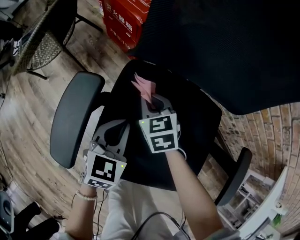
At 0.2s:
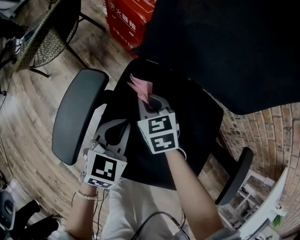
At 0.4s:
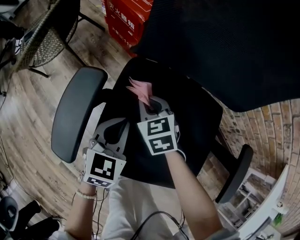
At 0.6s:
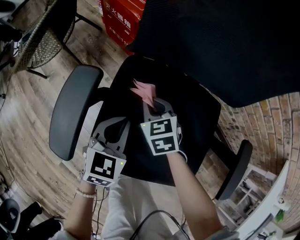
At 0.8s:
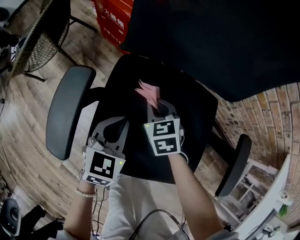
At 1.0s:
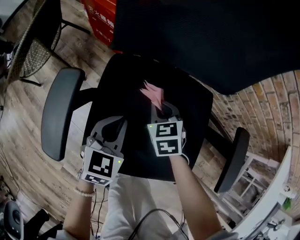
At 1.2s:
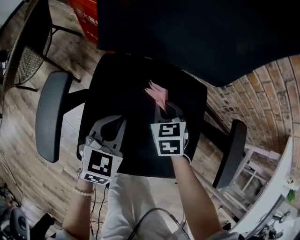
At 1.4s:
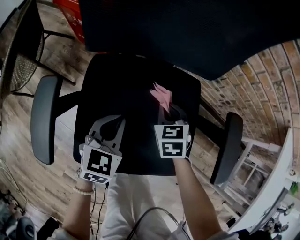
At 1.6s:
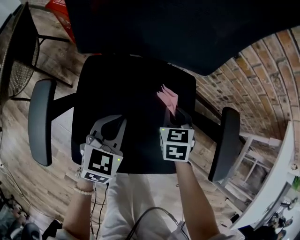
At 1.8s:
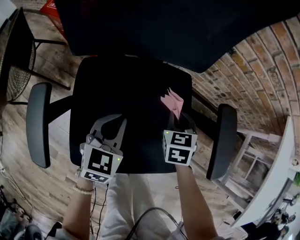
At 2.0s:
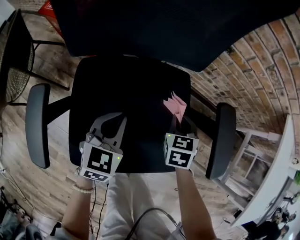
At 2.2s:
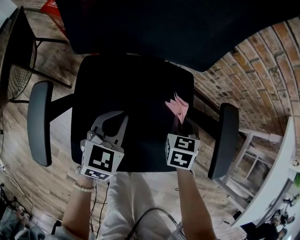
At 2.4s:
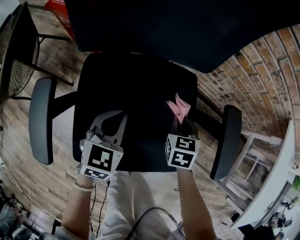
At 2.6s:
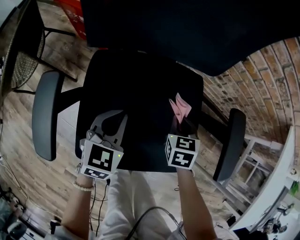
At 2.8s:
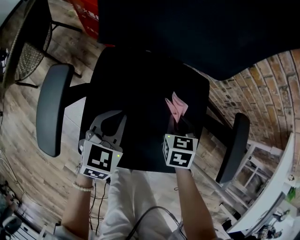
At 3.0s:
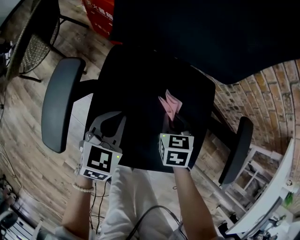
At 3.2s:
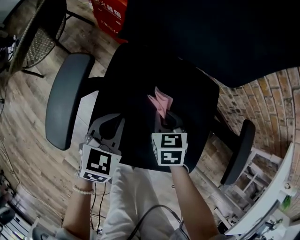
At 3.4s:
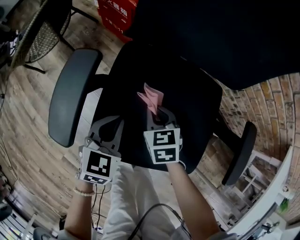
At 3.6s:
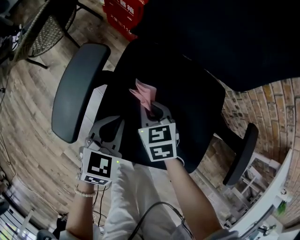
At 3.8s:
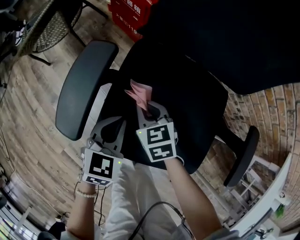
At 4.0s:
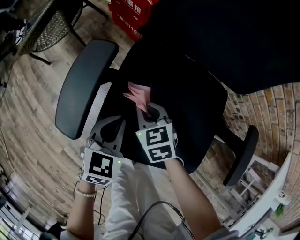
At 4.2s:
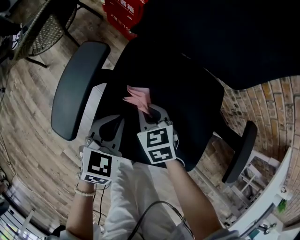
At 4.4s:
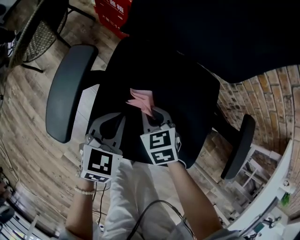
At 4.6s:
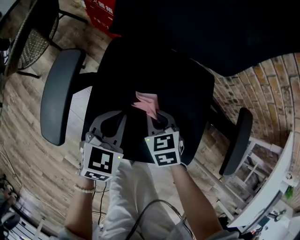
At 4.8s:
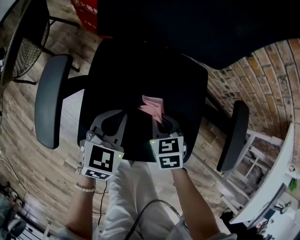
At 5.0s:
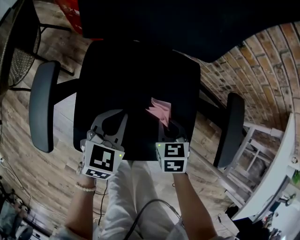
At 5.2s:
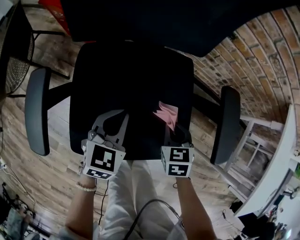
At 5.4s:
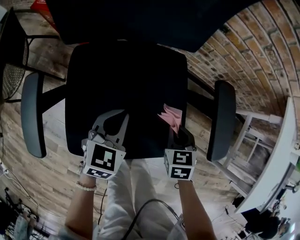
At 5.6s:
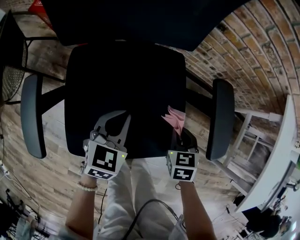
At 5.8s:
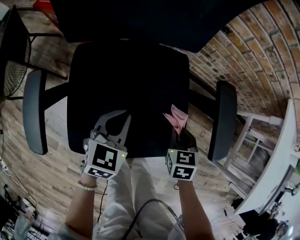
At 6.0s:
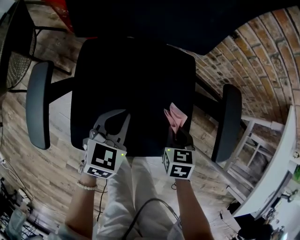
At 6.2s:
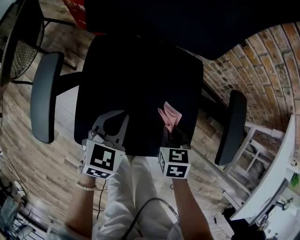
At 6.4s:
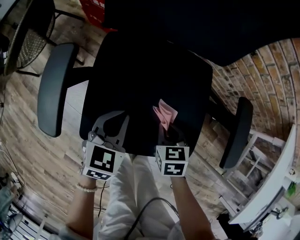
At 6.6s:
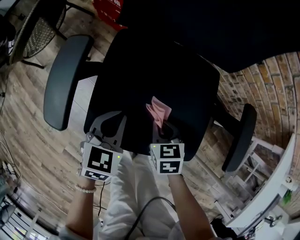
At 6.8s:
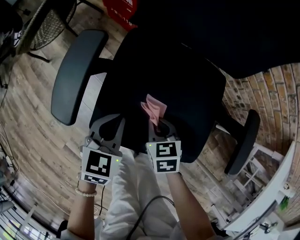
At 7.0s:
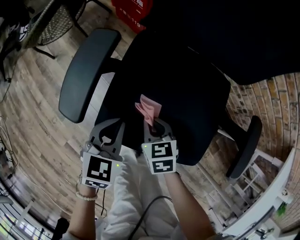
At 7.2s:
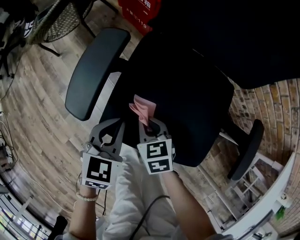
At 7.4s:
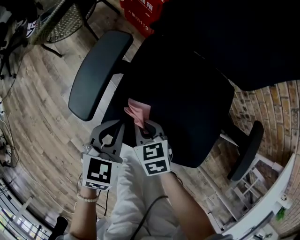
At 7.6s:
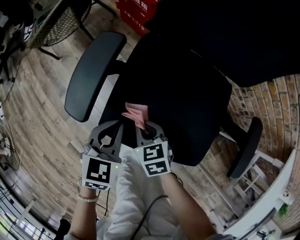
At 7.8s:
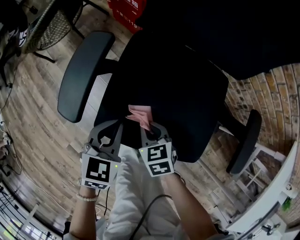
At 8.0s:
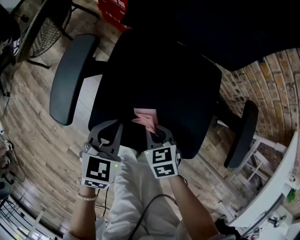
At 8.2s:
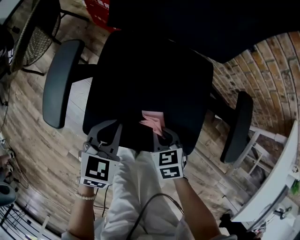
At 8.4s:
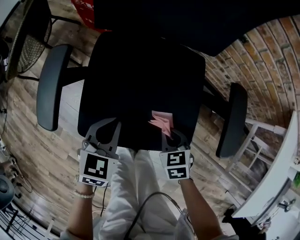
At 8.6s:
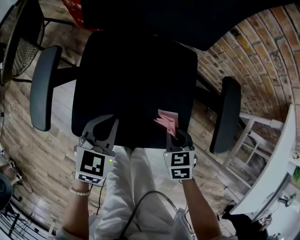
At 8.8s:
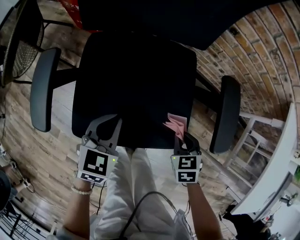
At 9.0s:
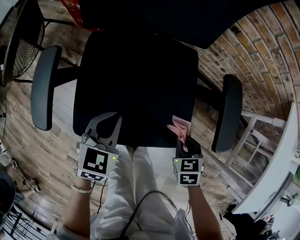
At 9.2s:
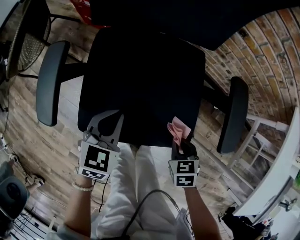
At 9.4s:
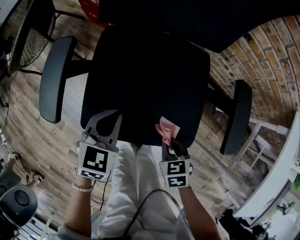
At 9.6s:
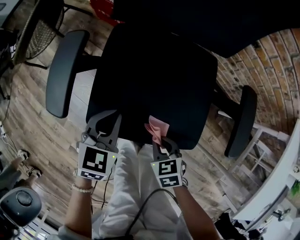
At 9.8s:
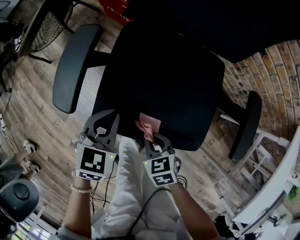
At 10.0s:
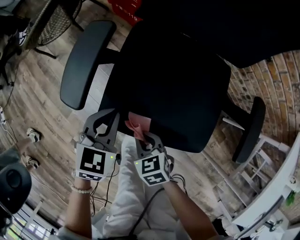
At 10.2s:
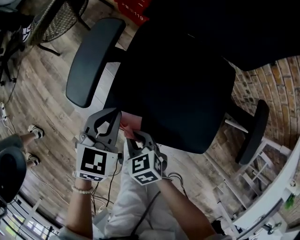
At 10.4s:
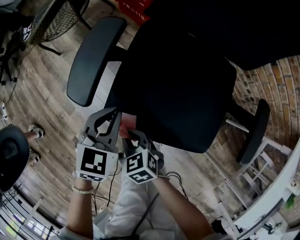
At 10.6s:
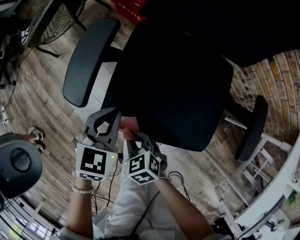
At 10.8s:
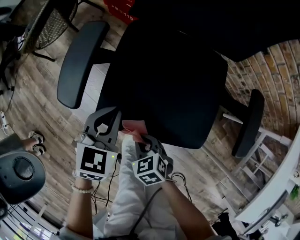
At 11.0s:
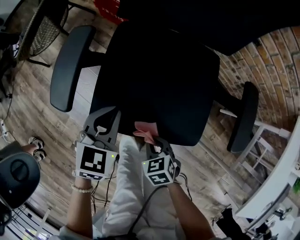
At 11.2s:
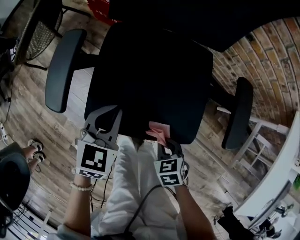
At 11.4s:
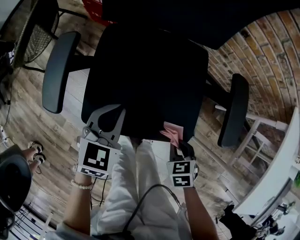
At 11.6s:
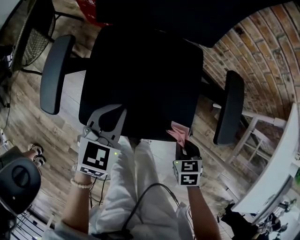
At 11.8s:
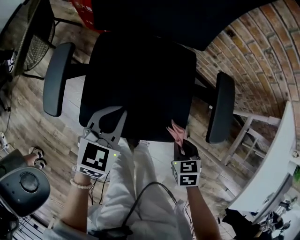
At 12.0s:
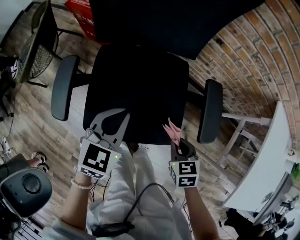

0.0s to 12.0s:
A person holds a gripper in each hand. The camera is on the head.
0.0s to 1.6s: The right gripper ends up roughly 25 cm from where it was, and swivels approximately 30 degrees. Meanwhile the left gripper ends up approximately 10 cm from where it was.
1.6s to 3.0s: The right gripper is displaced to the left and backward by about 10 cm. The left gripper is displaced to the left by about 5 cm.
3.0s to 4.4s: The right gripper is displaced to the left by approximately 10 cm, and turns by approximately 20 degrees.
4.4s to 6.0s: The left gripper changes place by roughly 10 cm; the right gripper changes place by some 25 cm, and swivels about 40 degrees.
6.0s to 7.6s: The left gripper ends up approximately 20 cm from where it was, and swivels roughly 20 degrees, while the right gripper moves some 30 cm, and rotates some 40 degrees.
7.6s to 9.0s: The left gripper shifts by approximately 15 cm; the right gripper changes place by roughly 30 cm, and turns by about 30 degrees.
9.0s to 10.4s: The left gripper shifts by some 15 cm; the right gripper changes place by about 35 cm, and changes its angle by roughly 40 degrees.
10.4s to 12.0s: The left gripper changes place by roughly 20 cm, and turns by about 20 degrees; the right gripper changes place by about 35 cm, and turns by approximately 40 degrees.

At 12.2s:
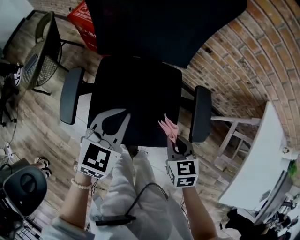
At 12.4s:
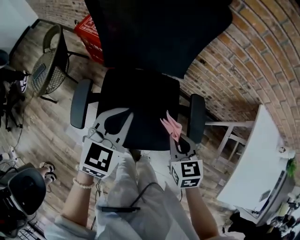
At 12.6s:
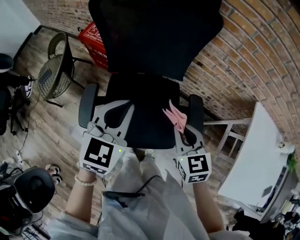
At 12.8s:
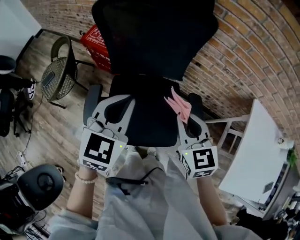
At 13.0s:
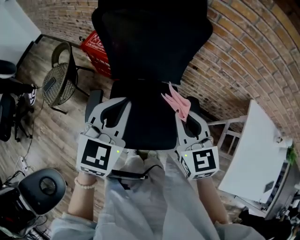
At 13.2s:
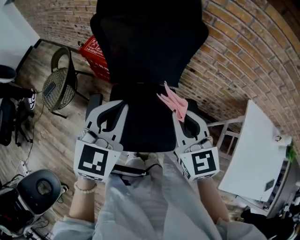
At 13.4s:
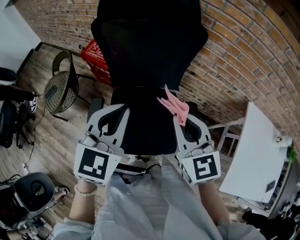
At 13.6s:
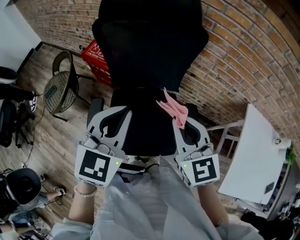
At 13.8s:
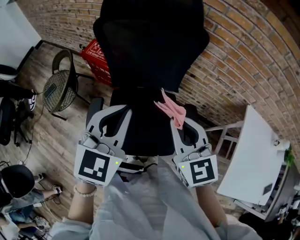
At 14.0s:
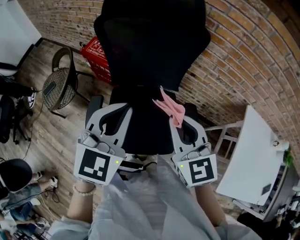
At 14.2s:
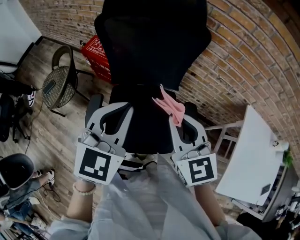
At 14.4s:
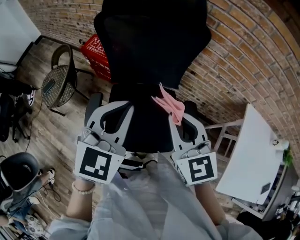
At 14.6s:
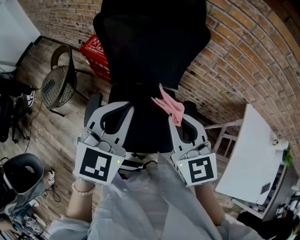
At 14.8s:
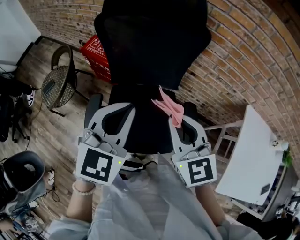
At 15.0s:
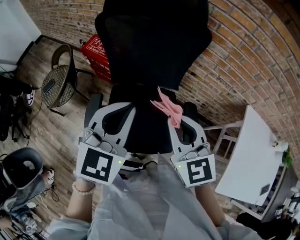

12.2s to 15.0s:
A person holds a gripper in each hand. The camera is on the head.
12.2s to 13.6s: The grippers both shift upward by some 30 cm. The right gripper tips its fingers upward by some 30 degrees.
13.6s to 15.0s: The grippers make only small movements.

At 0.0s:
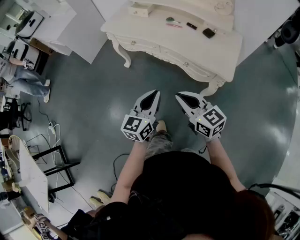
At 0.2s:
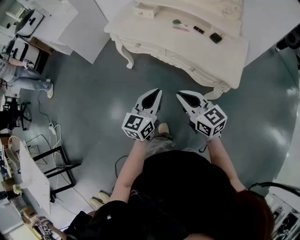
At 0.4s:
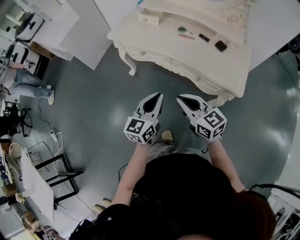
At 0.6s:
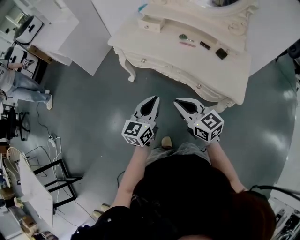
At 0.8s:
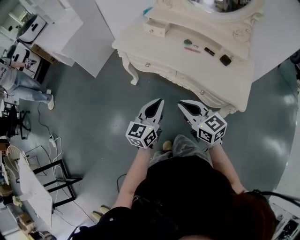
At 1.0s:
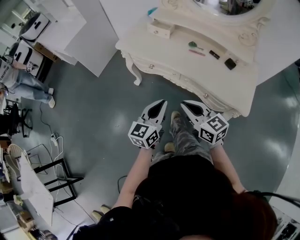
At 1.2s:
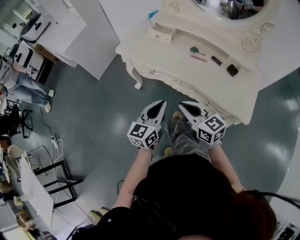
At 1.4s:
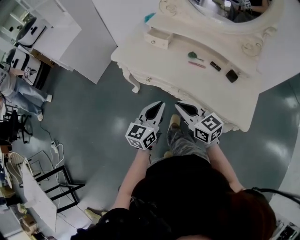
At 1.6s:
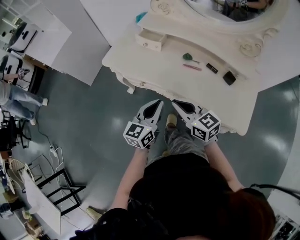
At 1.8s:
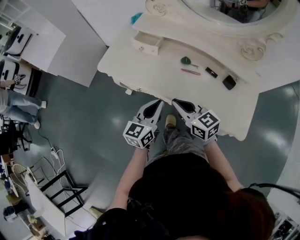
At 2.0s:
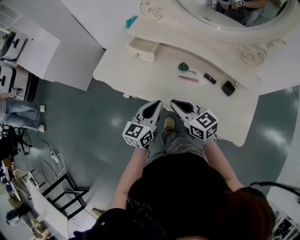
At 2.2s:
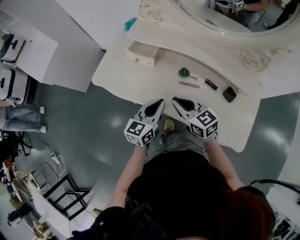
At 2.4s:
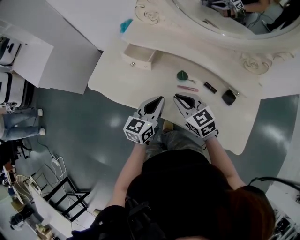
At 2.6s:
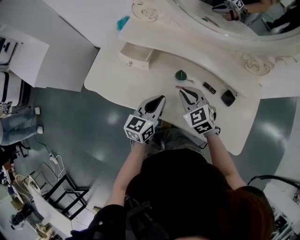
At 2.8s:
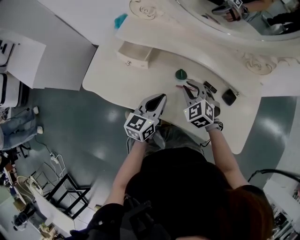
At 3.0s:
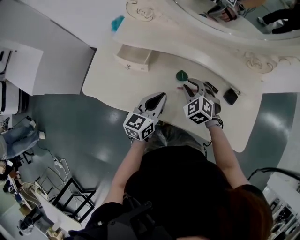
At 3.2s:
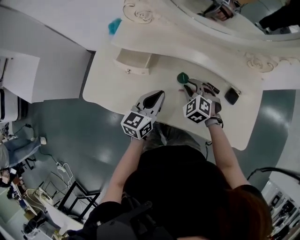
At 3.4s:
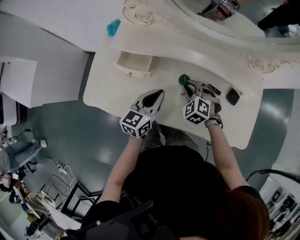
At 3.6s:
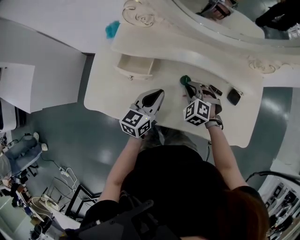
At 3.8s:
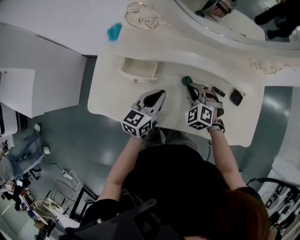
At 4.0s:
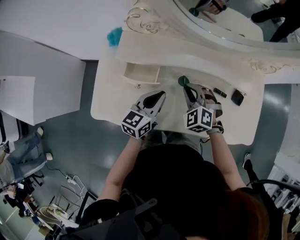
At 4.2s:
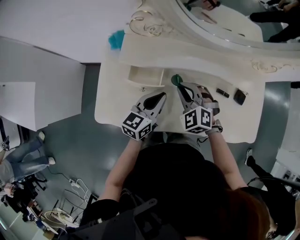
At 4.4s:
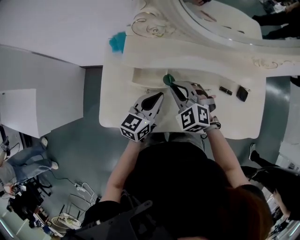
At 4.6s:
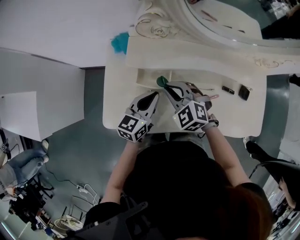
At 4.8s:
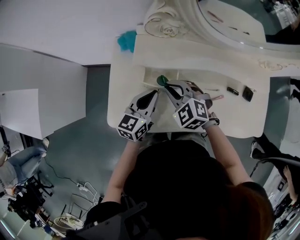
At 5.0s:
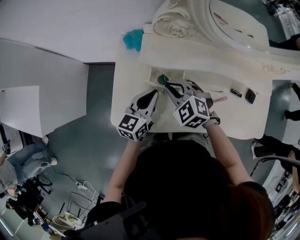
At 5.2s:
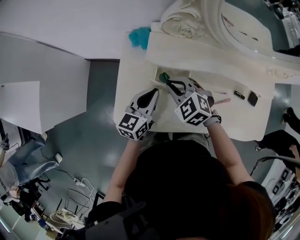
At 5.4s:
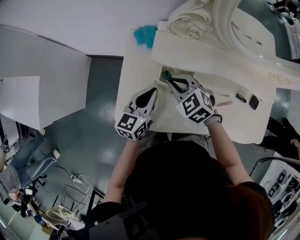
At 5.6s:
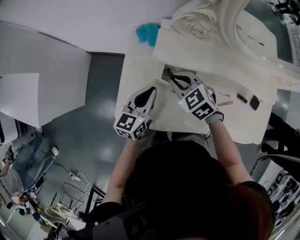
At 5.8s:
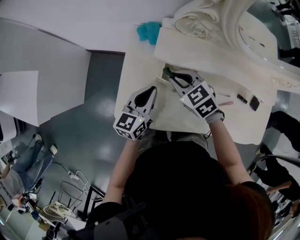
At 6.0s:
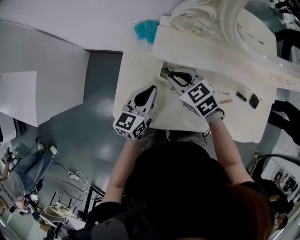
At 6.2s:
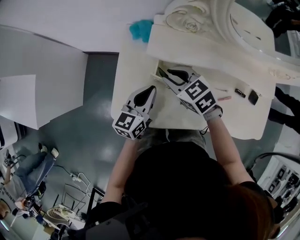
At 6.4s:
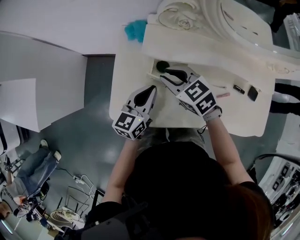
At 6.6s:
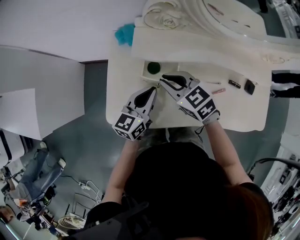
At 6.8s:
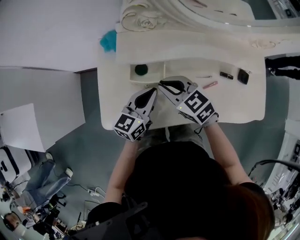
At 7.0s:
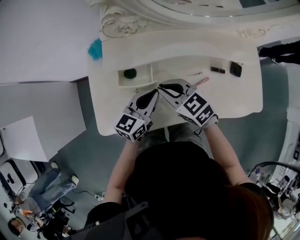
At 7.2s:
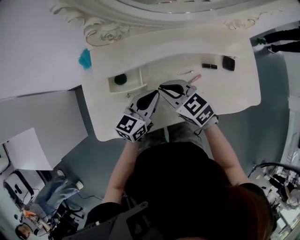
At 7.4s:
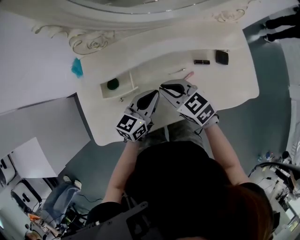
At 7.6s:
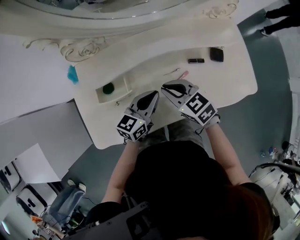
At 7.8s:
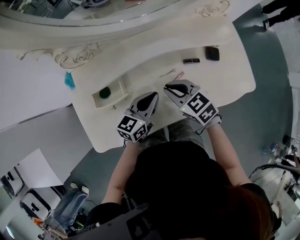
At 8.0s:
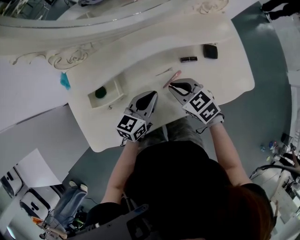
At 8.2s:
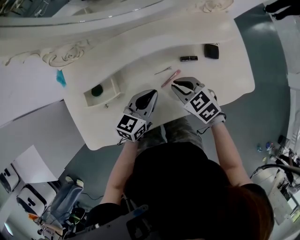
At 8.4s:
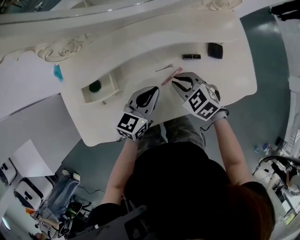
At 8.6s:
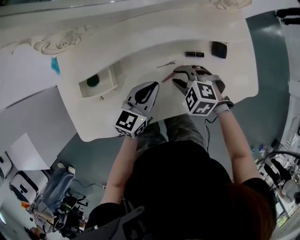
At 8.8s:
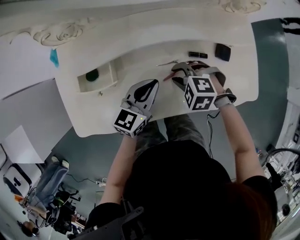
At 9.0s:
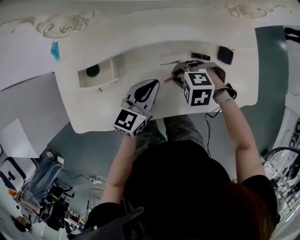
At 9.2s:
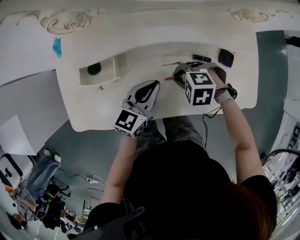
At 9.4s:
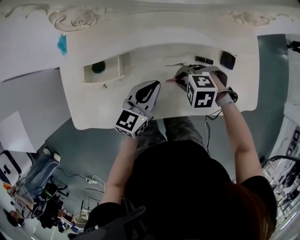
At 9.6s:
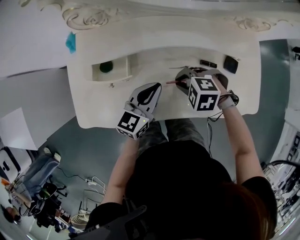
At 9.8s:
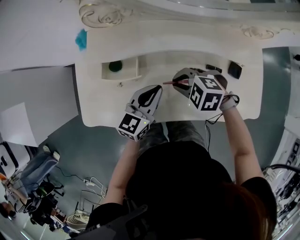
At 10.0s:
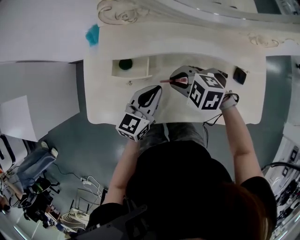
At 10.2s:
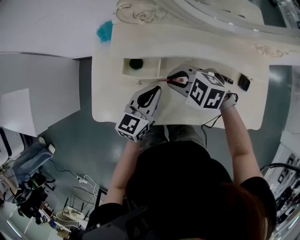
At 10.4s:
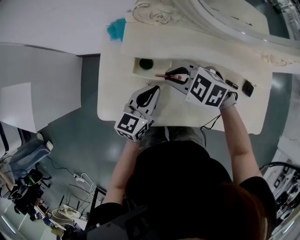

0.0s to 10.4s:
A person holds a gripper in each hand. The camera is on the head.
0.0s to 1.4s: The two grippers go roughly 25 cm forward.
1.4s to 3.0s: The left gripper changes place by about 25 cm; the right gripper changes place by about 35 cm, and tips its fingers downward by approximately 40 degrees.
3.0s to 4.4s: The left gripper shifts roughly 15 cm to the left and forward, while the right gripper goes approximately 20 cm to the left and upward.
4.4s to 6.0s: The two grippers go roughly 10 cm to the left. The right gripper turns by approximately 30 degrees.
6.0s to 7.4s: The left gripper travels to the right by roughly 20 cm, and changes its angle by some 30 degrees, while the right gripper travels to the right and backward by some 20 cm, and swivels roughly 20 degrees.
7.4s to 9.0s: The right gripper is displaced downward by roughly 10 cm, and tips its fingers downward by roughly 40 degrees; the left gripper ends up about 5 cm from where it was.
9.0s to 10.4s: The right gripper ends up about 25 cm from where it was, and turns by approximately 20 degrees; the left gripper changes place by about 20 cm.
